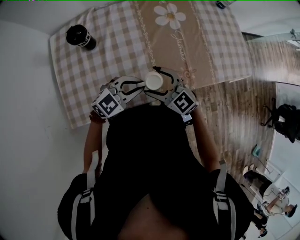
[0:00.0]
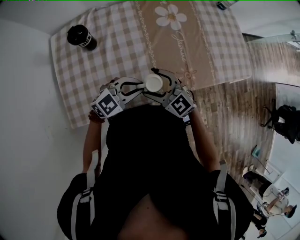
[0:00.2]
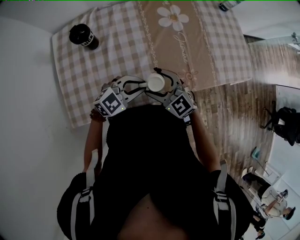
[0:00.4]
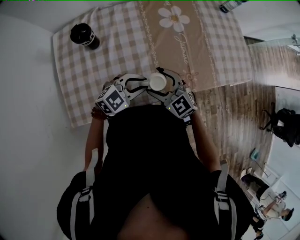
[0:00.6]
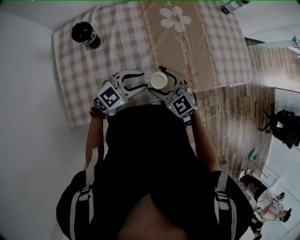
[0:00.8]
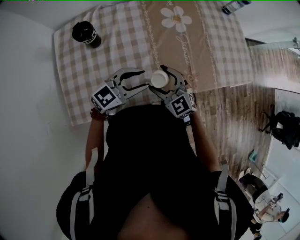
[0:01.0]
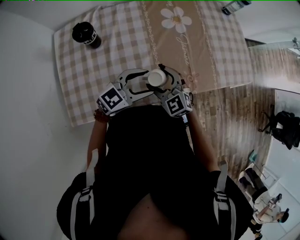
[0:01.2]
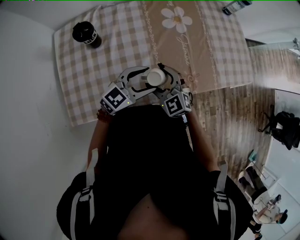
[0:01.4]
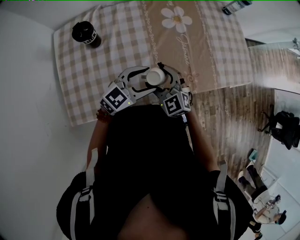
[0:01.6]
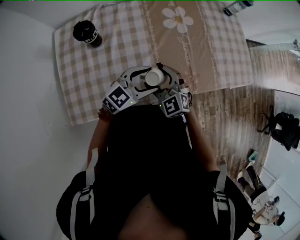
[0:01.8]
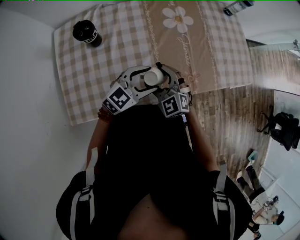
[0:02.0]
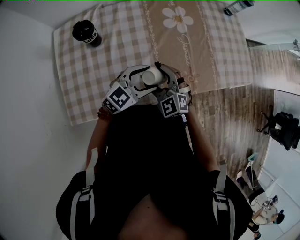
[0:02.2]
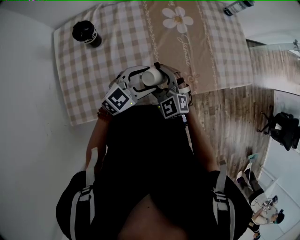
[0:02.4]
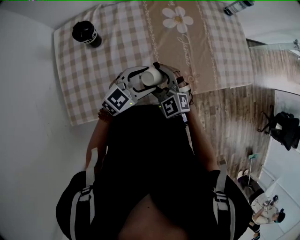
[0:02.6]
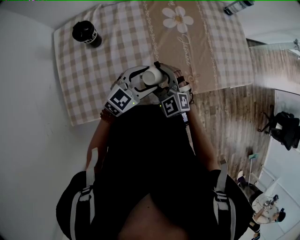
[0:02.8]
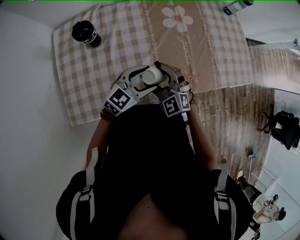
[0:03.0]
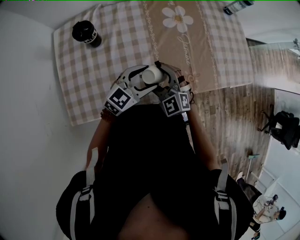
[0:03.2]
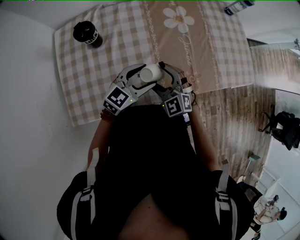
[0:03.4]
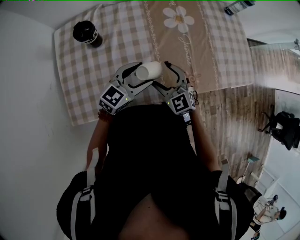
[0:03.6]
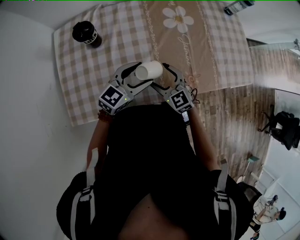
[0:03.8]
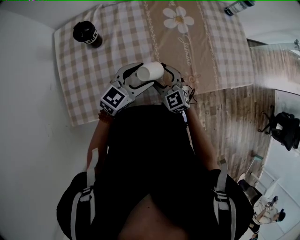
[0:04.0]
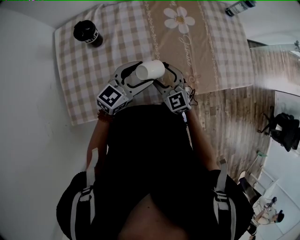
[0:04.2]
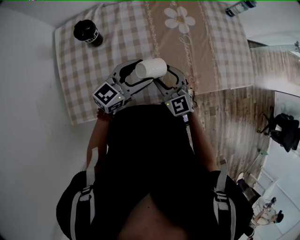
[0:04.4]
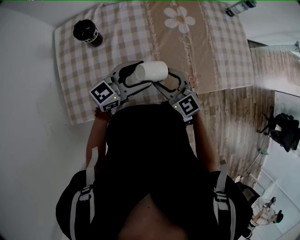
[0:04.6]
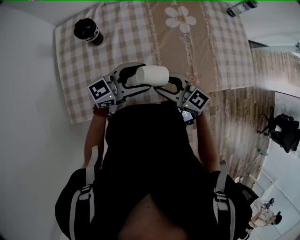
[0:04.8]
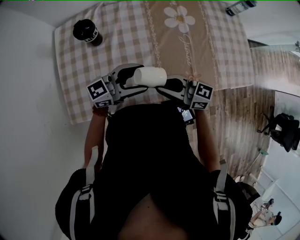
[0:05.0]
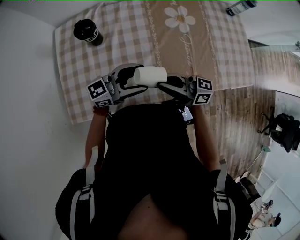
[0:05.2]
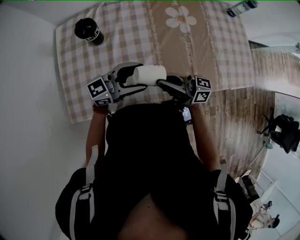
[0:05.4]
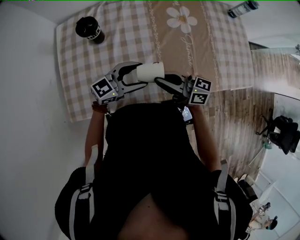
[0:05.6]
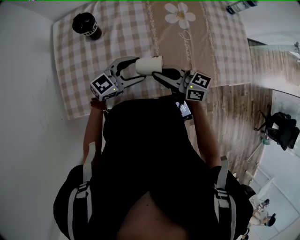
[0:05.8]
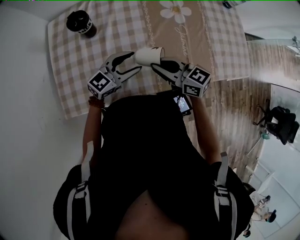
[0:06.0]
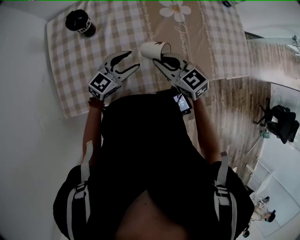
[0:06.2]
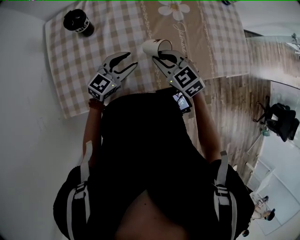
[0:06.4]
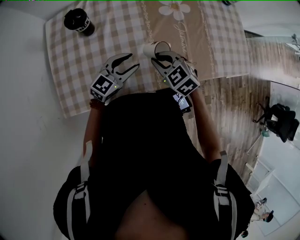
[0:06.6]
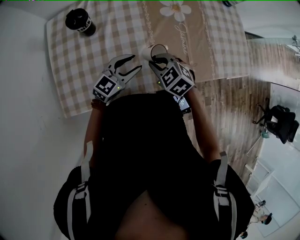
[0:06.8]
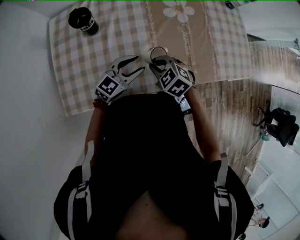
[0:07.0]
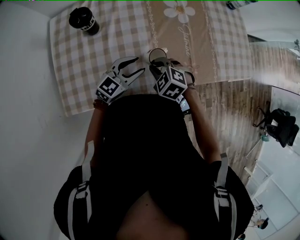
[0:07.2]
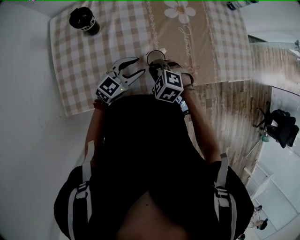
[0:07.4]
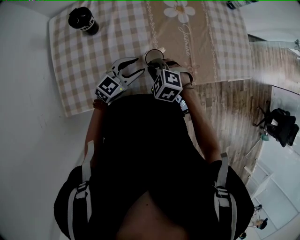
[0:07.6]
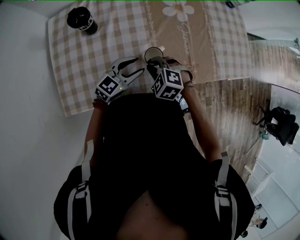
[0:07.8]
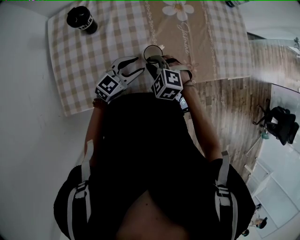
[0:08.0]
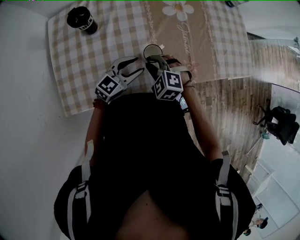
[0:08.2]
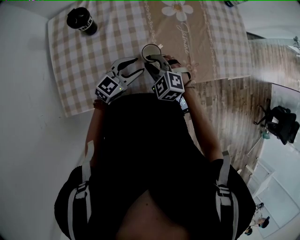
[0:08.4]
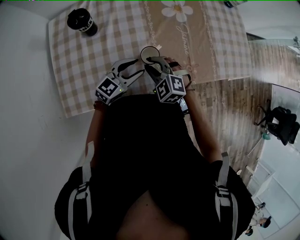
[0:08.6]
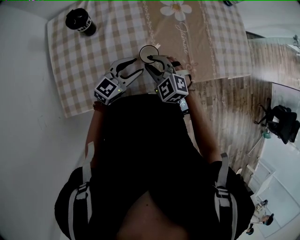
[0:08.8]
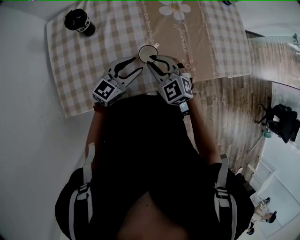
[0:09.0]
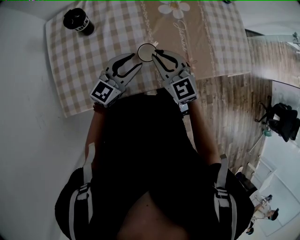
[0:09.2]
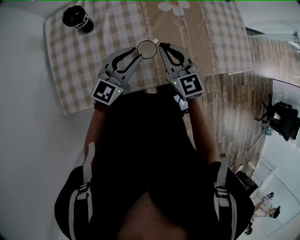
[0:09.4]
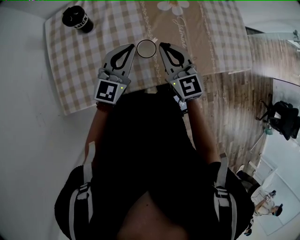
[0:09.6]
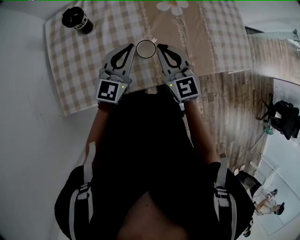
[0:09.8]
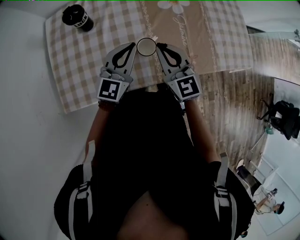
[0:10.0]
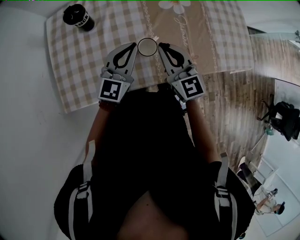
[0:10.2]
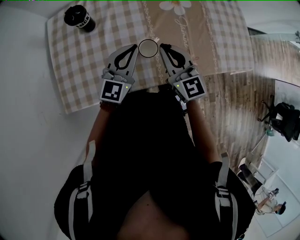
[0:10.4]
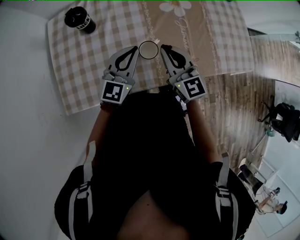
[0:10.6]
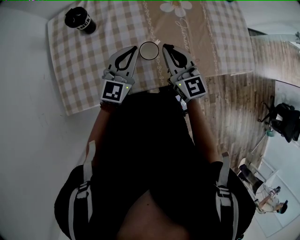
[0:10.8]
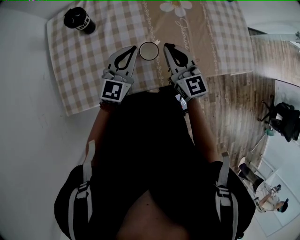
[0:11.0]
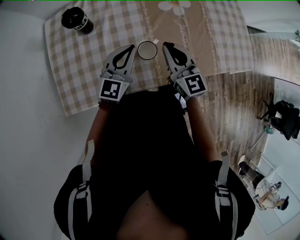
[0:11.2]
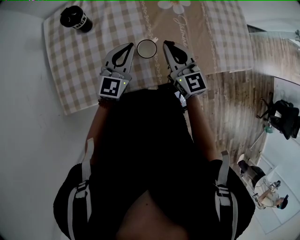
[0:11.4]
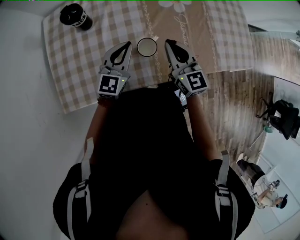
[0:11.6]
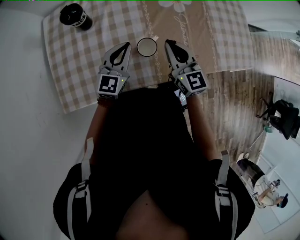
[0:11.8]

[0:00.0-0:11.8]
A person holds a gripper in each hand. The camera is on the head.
0.0 to 1.4 s: The left gripper ends up roughly 5 cm from where it was, and opens.
1.4 to 3.0 s: There are only small adjustments of the grippers.
3.0 to 4.4 s: The right gripper closes up. The left gripper changes place by some 5 cm.
4.4 to 6.0 s: The left gripper heads downward, covering some 5 cm; the right gripper swivels some 50 degrees, and closes.
6.0 to 7.4 s: The right gripper goes approximately 10 cm downward, and tilts its fingers about 50 degrees downward.
7.4 to 8.8 s: The right gripper rotates approximately 20 degrees.
8.8 to 10.4 s: Both grippers move upward, about 10 cm. The right gripper tips its fingers upward by roughly 30 degrees; the left gripper swivels roughly 30 degrees, and closes.
10.4 to 11.8 s: The left gripper heads downward, covering some 5 cm. The right gripper changes place by approximately 5 cm.

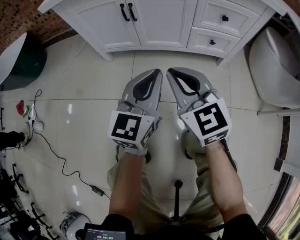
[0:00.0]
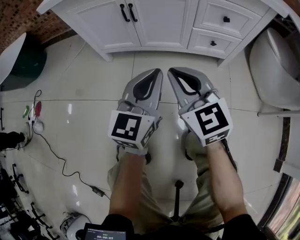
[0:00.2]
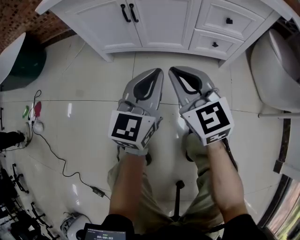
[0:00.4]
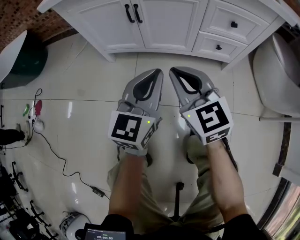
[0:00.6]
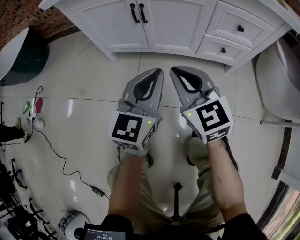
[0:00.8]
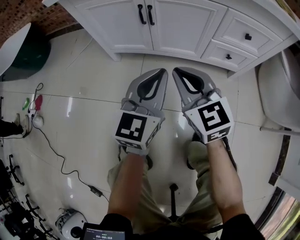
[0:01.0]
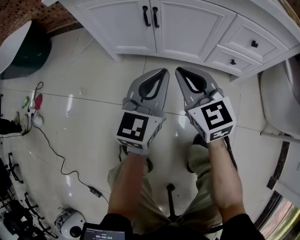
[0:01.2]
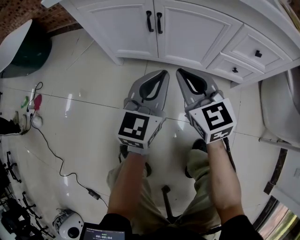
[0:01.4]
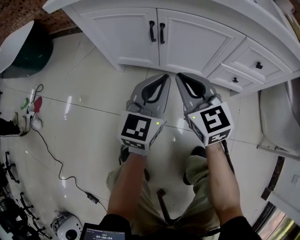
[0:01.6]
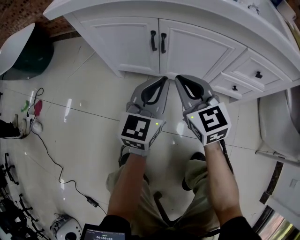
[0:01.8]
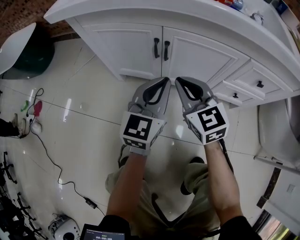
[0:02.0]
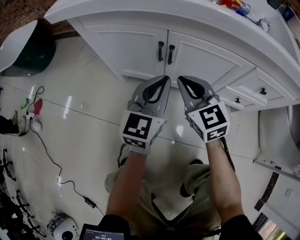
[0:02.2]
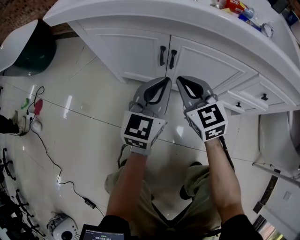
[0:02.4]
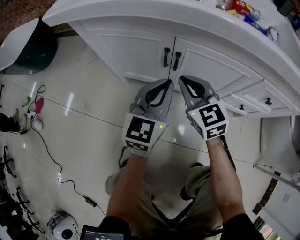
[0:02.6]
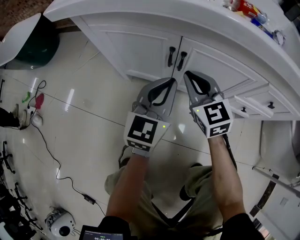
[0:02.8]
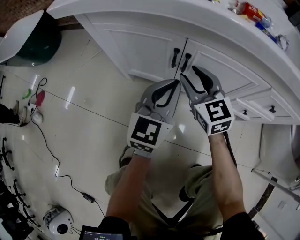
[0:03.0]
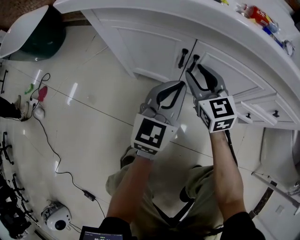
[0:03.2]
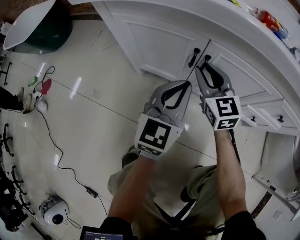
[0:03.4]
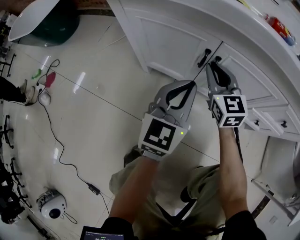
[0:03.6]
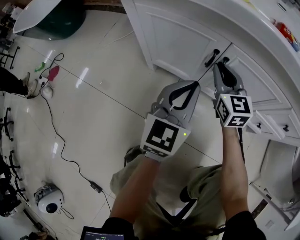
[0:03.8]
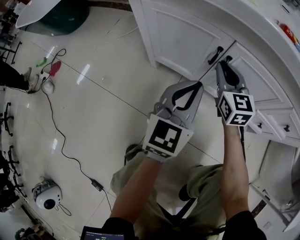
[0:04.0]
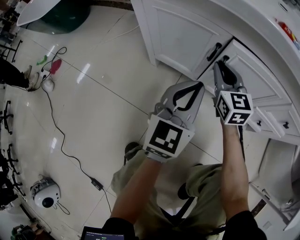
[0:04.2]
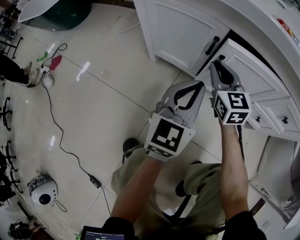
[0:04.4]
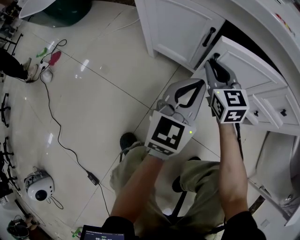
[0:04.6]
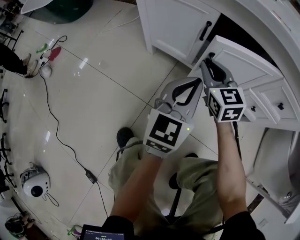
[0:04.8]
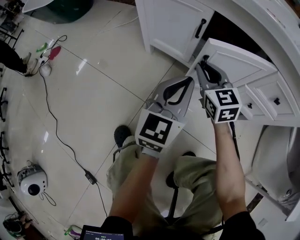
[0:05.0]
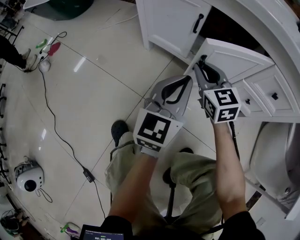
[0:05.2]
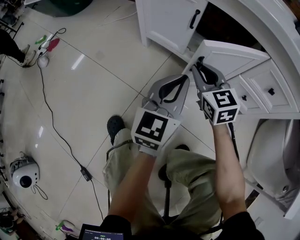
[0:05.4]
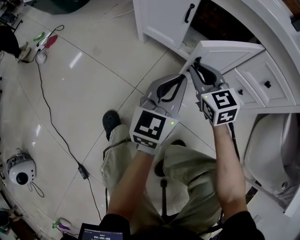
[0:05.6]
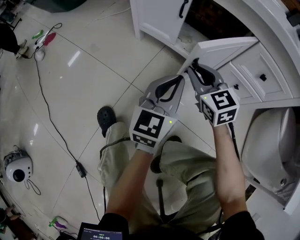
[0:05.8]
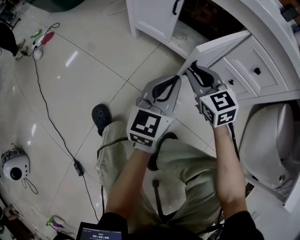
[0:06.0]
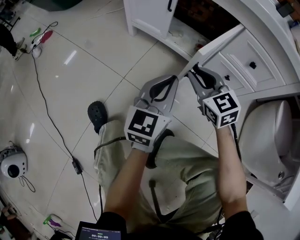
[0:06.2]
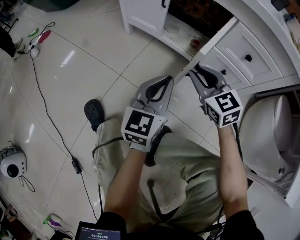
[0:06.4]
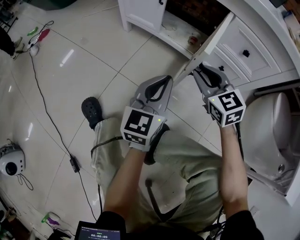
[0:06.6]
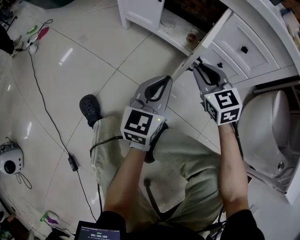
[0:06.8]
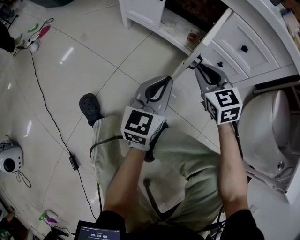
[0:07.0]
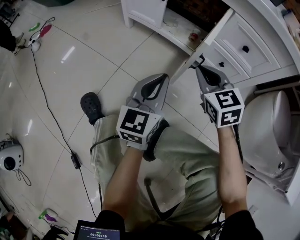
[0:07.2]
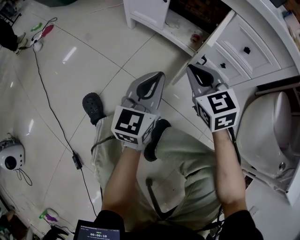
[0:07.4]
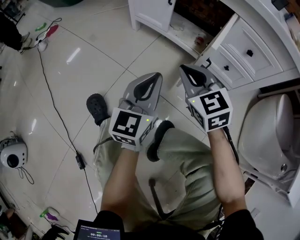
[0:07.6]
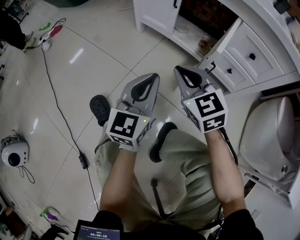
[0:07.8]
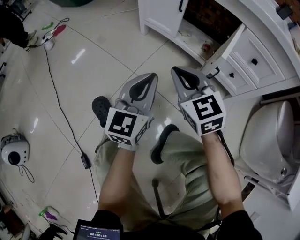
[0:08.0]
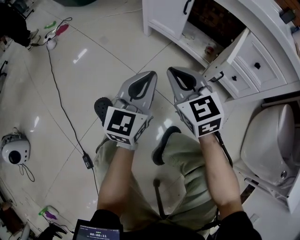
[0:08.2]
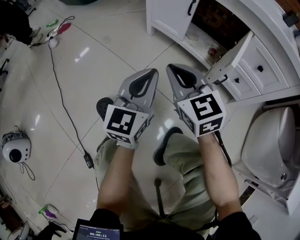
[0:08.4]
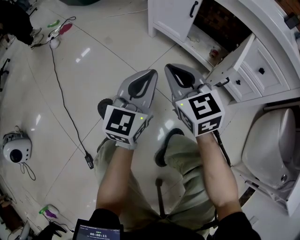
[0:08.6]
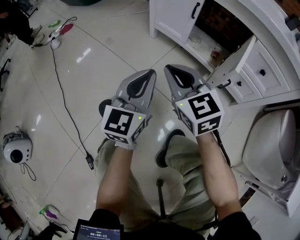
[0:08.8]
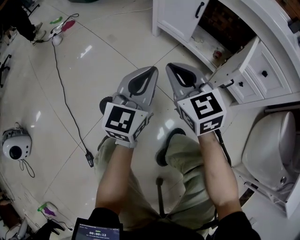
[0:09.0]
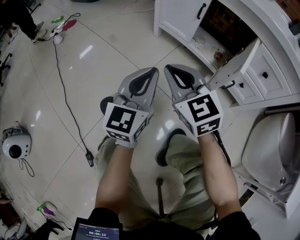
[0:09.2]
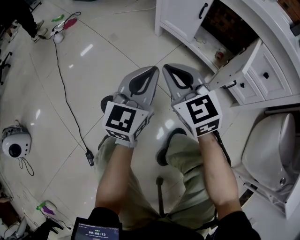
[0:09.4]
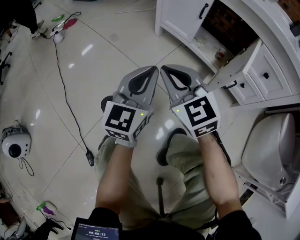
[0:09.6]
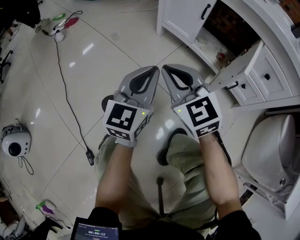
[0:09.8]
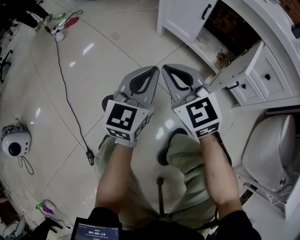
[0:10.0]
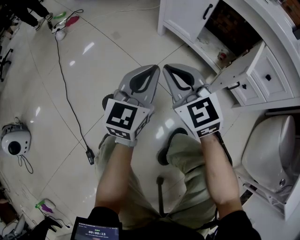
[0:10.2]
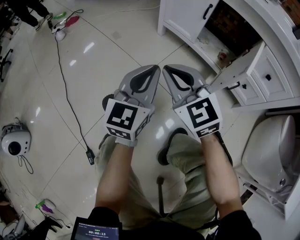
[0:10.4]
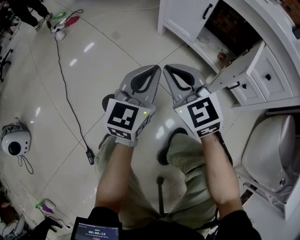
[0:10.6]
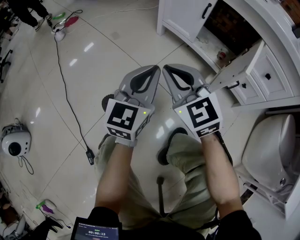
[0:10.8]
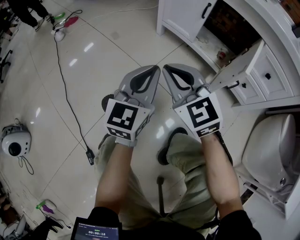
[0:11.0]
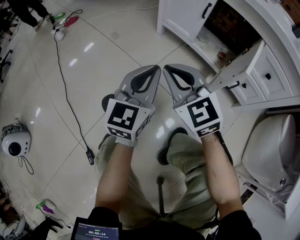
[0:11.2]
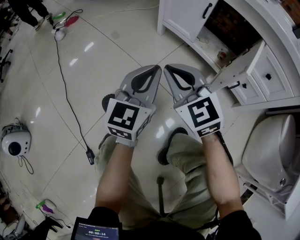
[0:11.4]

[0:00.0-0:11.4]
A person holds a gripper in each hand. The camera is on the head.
0.0 to 1.4 s: The two grippers go about 15 cm forward.
1.4 to 2.8 s: The grippers both shift forward by approximately 15 cm.
2.8 to 4.2 s: The right gripper opens, then closes once more. Meanwhile the left gripper heads backward, covering some 5 cm.
4.2 to 5.6 s: The grippers both shift backward by roughly 20 cm. The right gripper changes its angle by about 20 degrees.
5.6 to 7.2 s: Both grippers move backward and to the right, some 15 cm.
7.2 to 8.6 s: The left gripper travels to the left and upward by about 15 cm. The right gripper shifts about 20 cm to the left.
8.6 to 10.0 s: The right gripper is displaced to the left by approximately 5 cm.
10.0 to 11.4 s: Both grippers stay put.

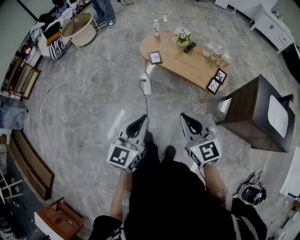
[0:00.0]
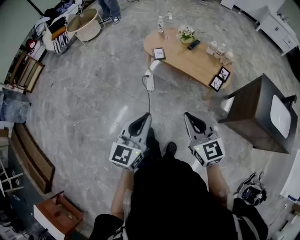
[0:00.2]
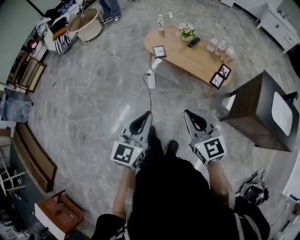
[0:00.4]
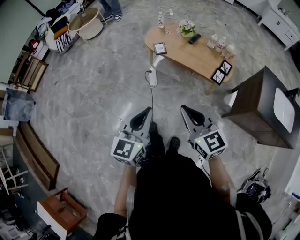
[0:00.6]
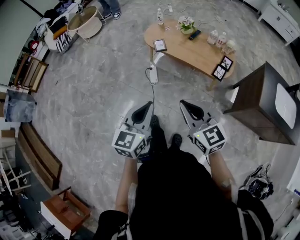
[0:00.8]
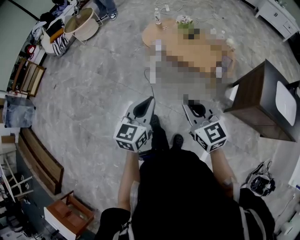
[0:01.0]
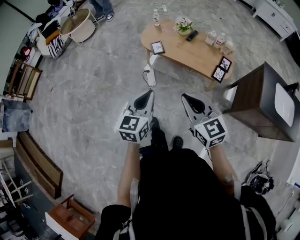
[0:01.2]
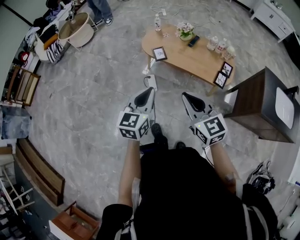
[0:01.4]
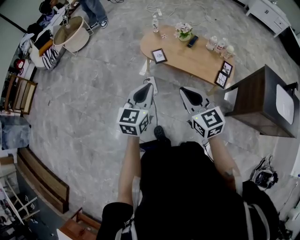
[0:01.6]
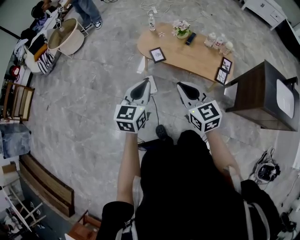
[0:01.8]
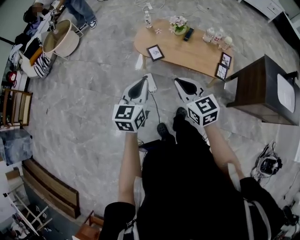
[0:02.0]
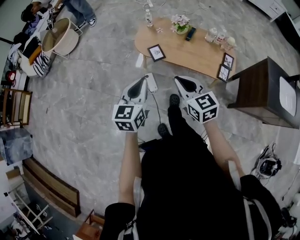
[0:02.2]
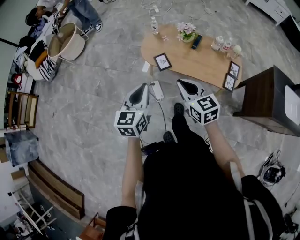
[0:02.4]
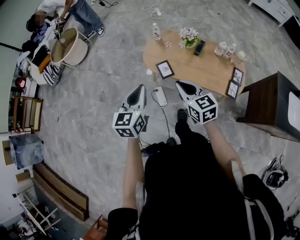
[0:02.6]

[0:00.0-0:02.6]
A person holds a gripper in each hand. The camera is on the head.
0.0 to 1.2 s: The left gripper shifts about 10 cm forward.
1.2 to 2.6 s: Both grippers travel together forward, roughly 35 cm.
